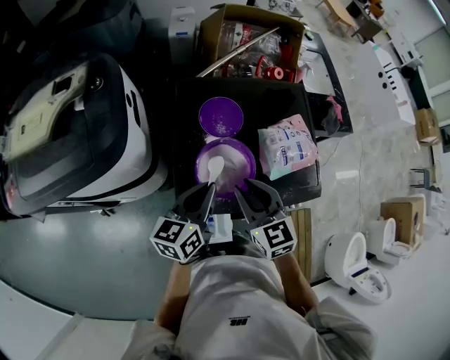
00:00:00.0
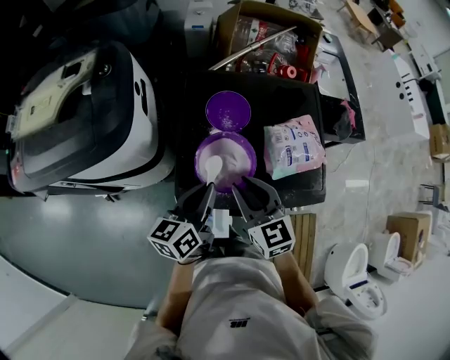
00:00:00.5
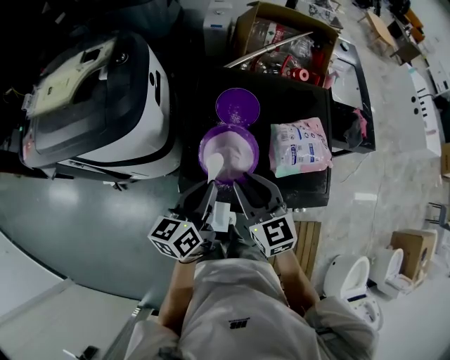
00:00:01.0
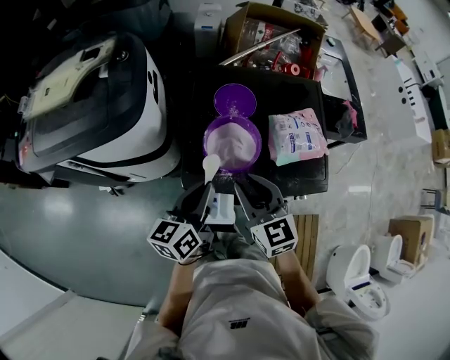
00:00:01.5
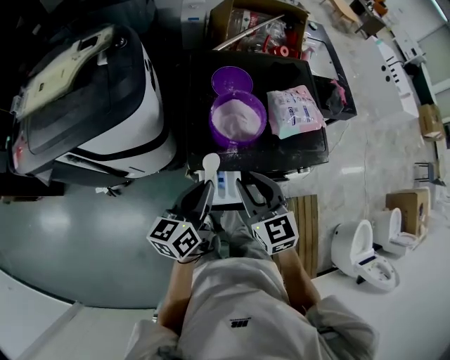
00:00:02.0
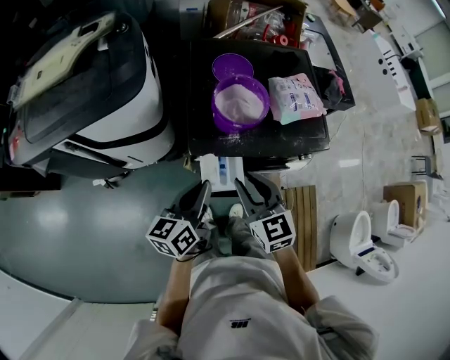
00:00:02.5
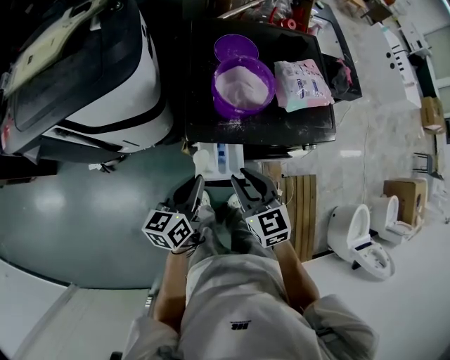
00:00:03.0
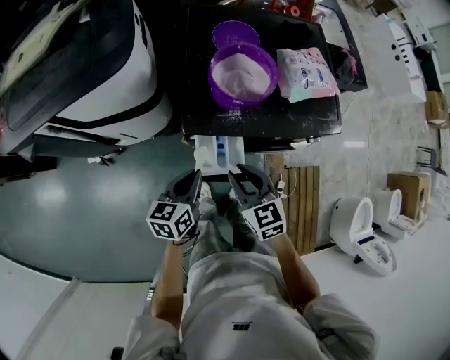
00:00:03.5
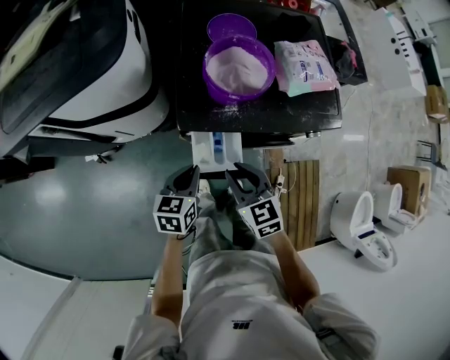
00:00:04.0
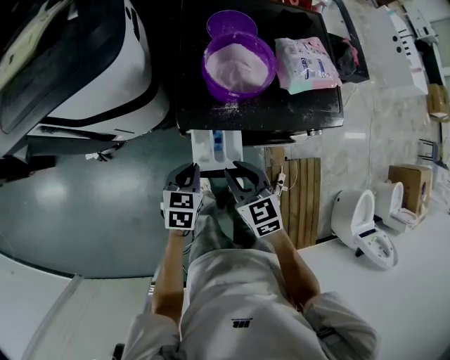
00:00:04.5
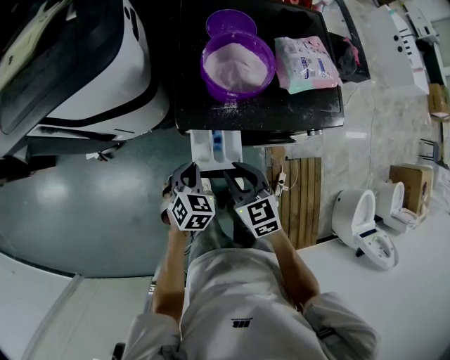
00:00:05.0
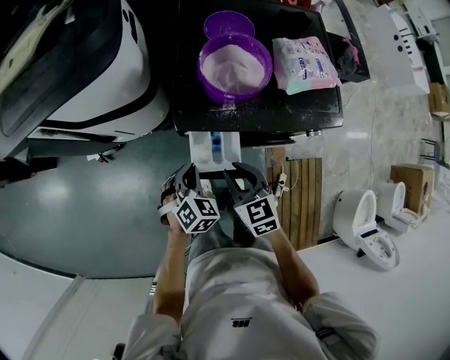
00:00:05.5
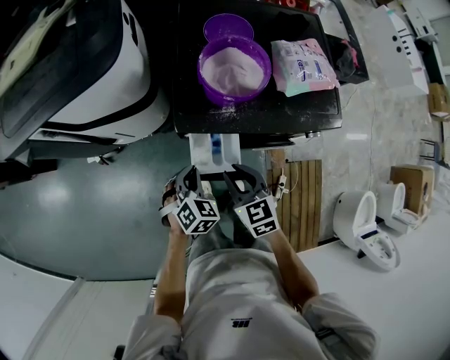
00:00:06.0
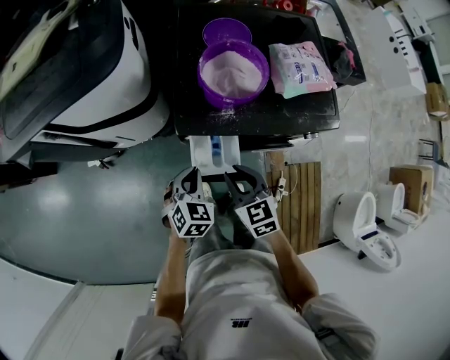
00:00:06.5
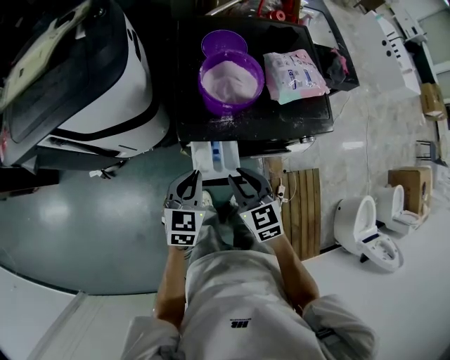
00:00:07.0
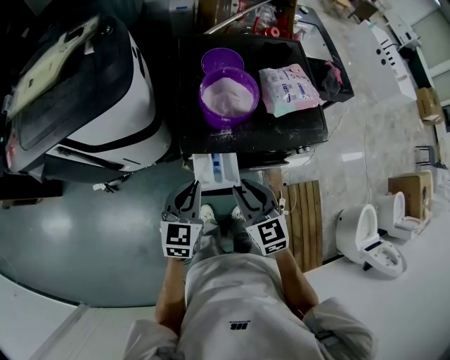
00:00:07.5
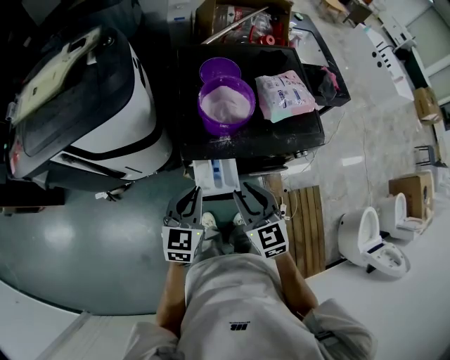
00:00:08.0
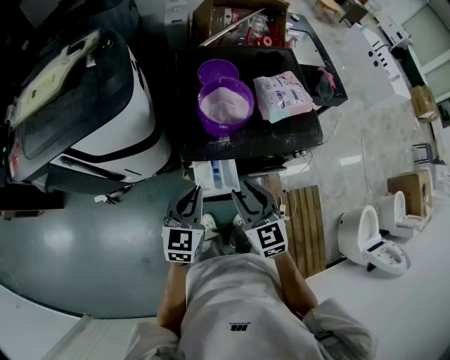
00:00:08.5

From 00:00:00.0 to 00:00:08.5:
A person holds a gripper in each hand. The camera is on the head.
From 00:00:00.0 to 00:00:02.0: The grippers both shift backward by roughly 15 cm.
From 00:00:02.0 to 00:00:04.0: The right gripper goes roughly 15 cm downward and backward. Meanwhile the left gripper is displaced downward by roughly 20 cm, and rotates about 30 degrees.
From 00:00:04.0 to 00:00:06.5: The left gripper rotates approximately 40 degrees.
From 00:00:06.5 to 00:00:08.5: The two grippers go roughly 10 cm upward. The left gripper turns by some 30 degrees.

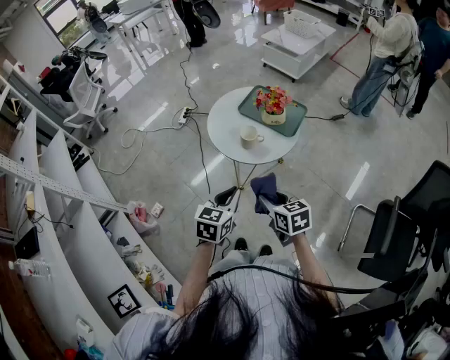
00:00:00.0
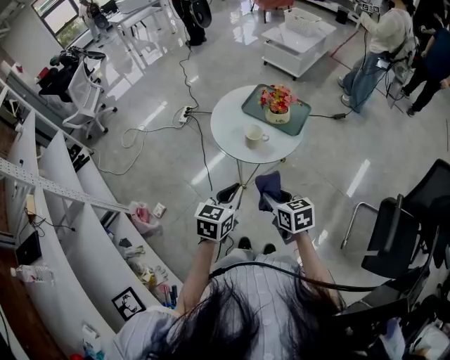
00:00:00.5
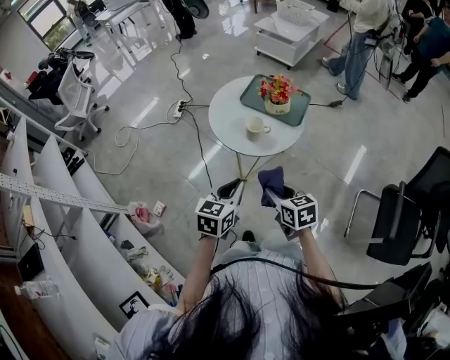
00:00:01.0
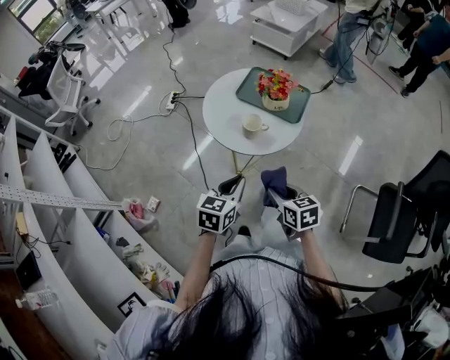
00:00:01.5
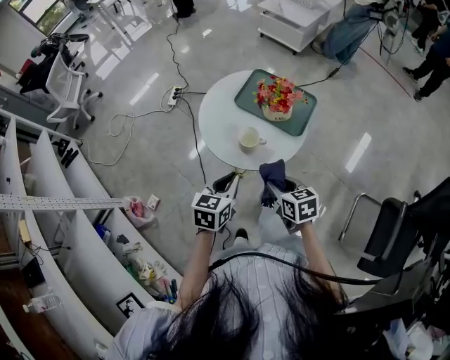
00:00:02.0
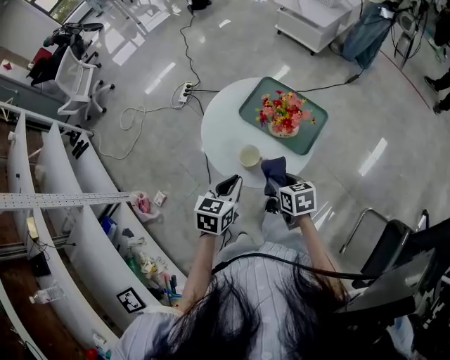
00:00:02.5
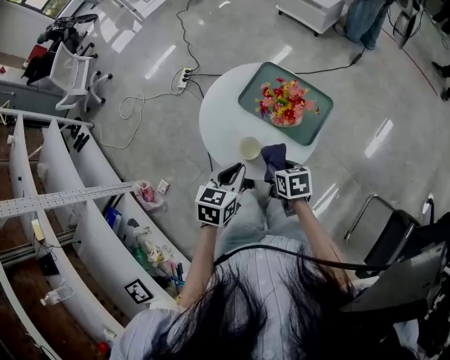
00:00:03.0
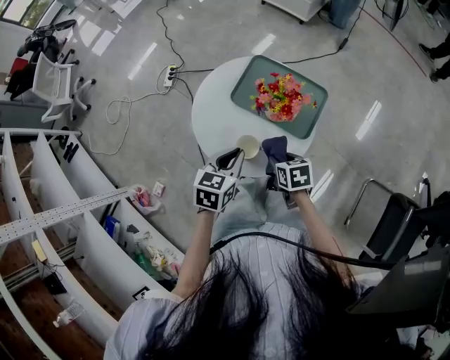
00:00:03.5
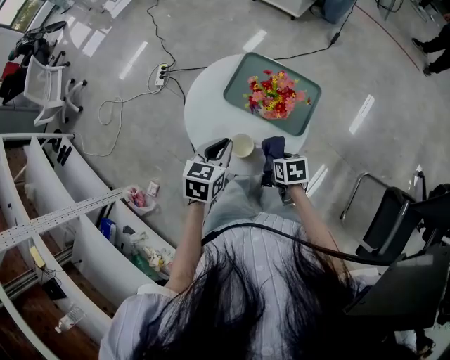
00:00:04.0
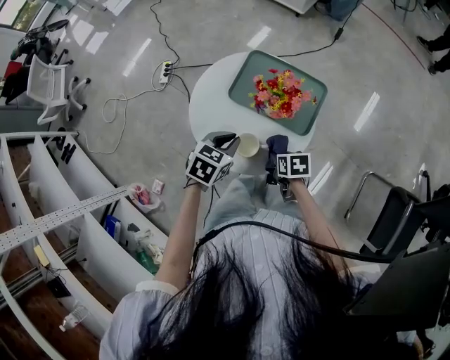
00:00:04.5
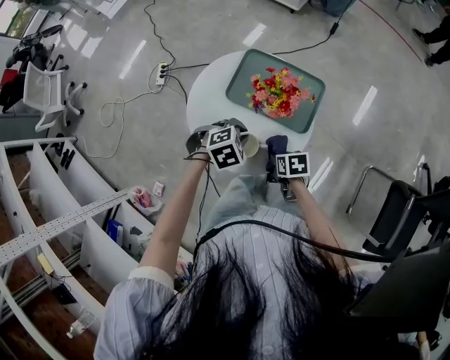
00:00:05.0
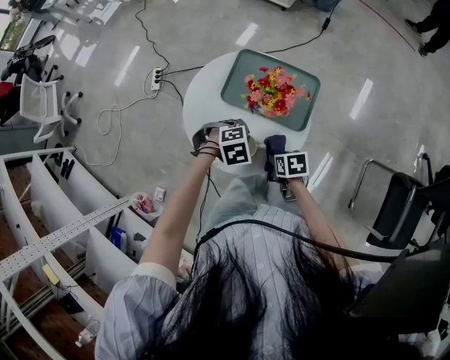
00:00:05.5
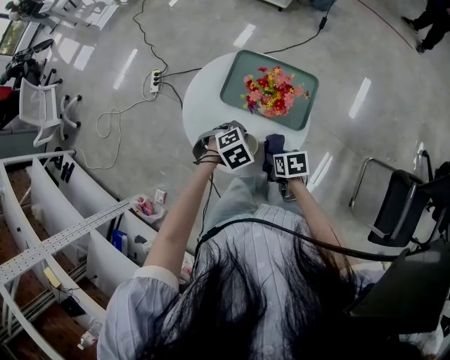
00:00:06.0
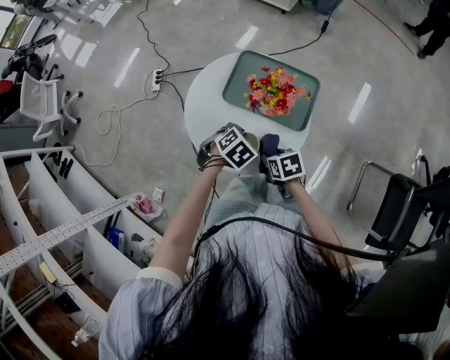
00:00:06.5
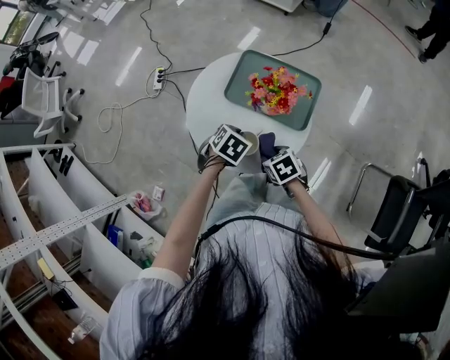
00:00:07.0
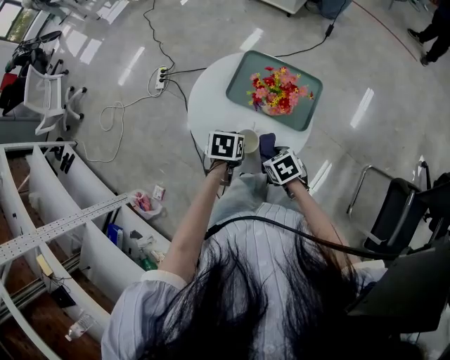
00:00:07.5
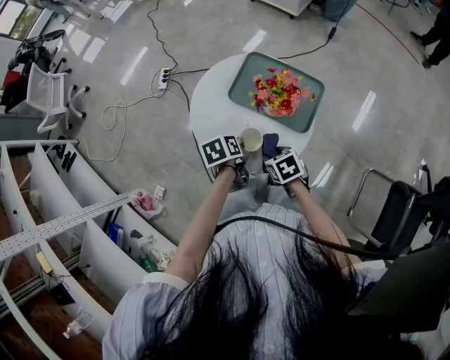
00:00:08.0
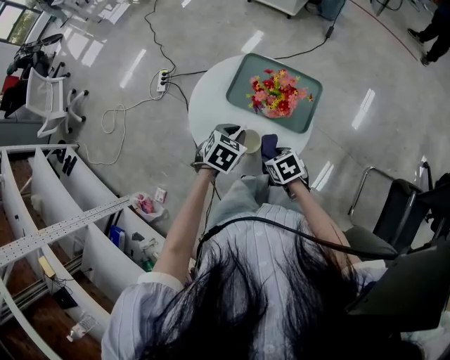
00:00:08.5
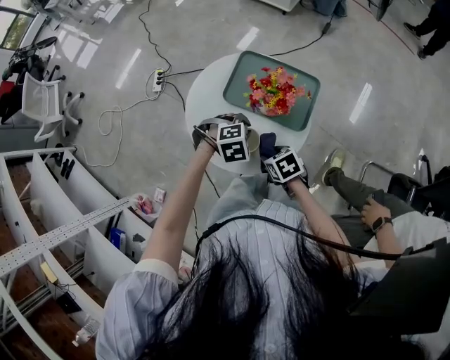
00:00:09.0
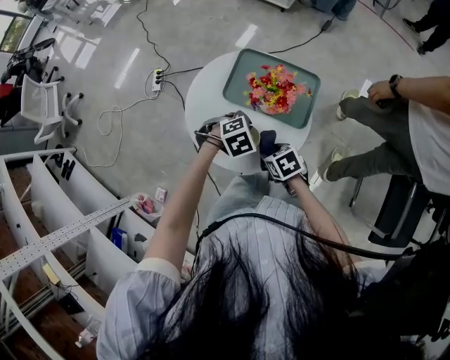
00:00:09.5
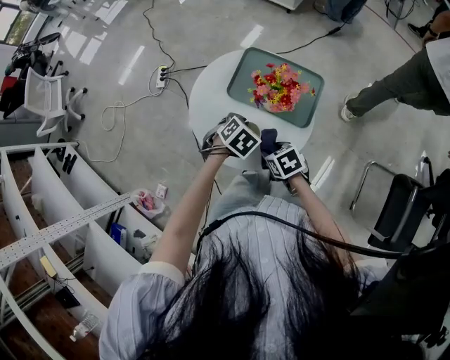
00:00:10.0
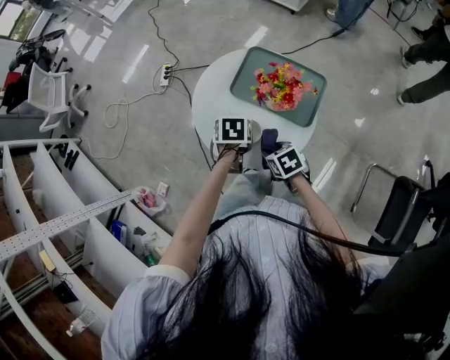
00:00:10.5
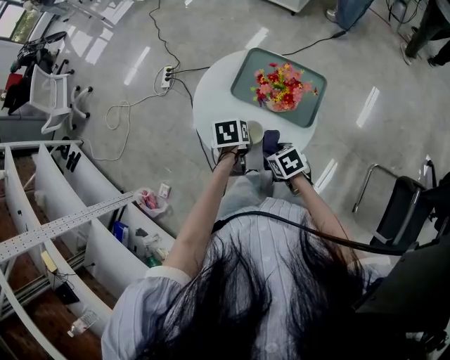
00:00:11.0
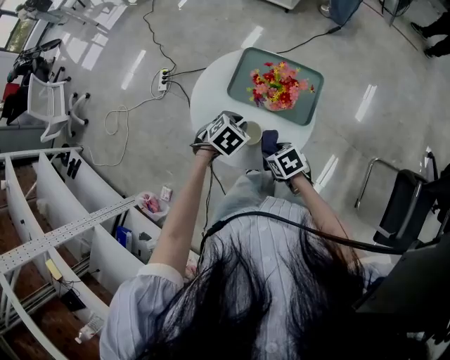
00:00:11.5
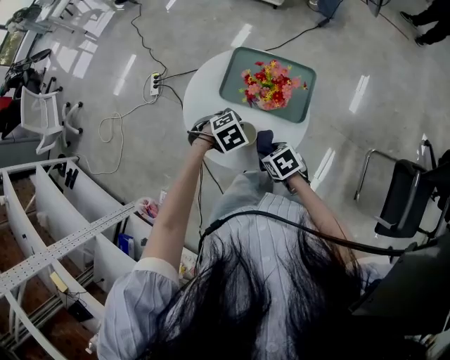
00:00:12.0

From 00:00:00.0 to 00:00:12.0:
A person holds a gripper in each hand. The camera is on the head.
From 00:00:00.0 to 00:00:02.0: Both grippers move forward and downward, approximately 15 cm.
From 00:00:02.0 to 00:00:04.0: The left gripper heads forward, covering about 15 cm. The right gripper is displaced forward, downward and to the right by approximately 15 cm, and changes its angle by approximately 20 degrees.
From 00:00:04.0 to 00:00:06.0: The left gripper travels downward by some 10 cm, and tilts its fingers roughly 30 degrees downward.
From 00:00:06.0 to 00:00:08.0: The left gripper moves to the left, some 5 cm, and rotates around the line of its fingers by roughly 90 degrees, counterclockwise from behind; the right gripper rotates some 30 degrees.
From 00:00:08.0 to 00:00:10.0: The left gripper moves about 5 cm, and rolls clockwise, seen from behind, by about 70 degrees.
From 00:00:10.0 to 00:00:12.0: The left gripper swivels roughly 30 degrees.

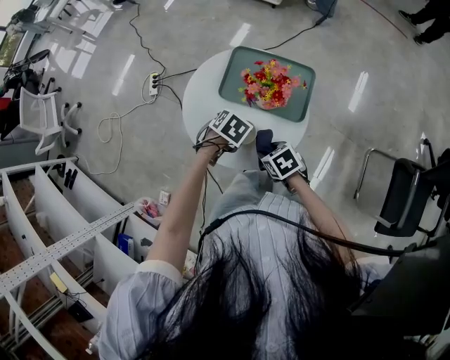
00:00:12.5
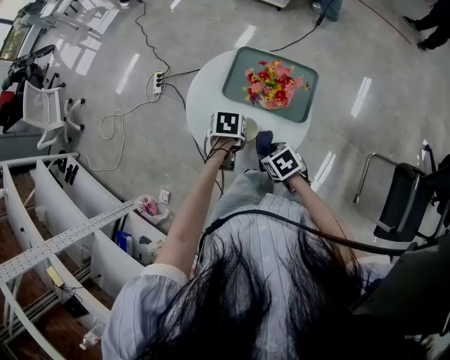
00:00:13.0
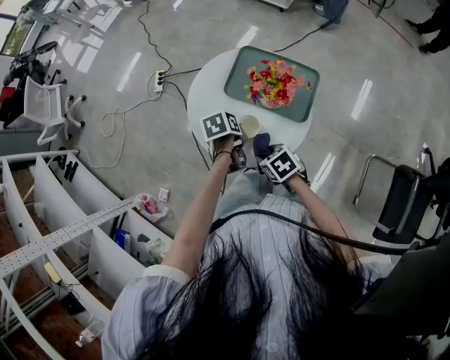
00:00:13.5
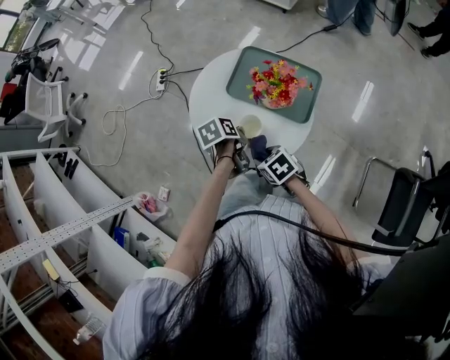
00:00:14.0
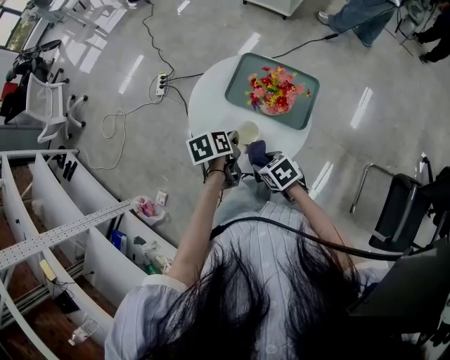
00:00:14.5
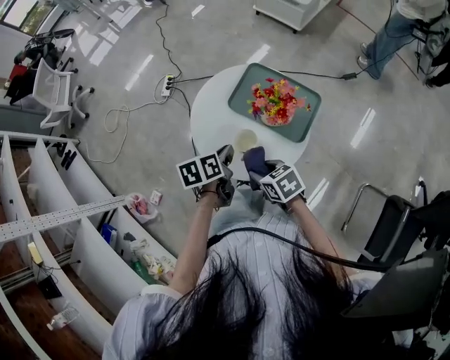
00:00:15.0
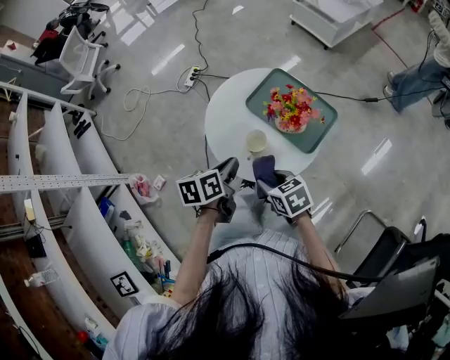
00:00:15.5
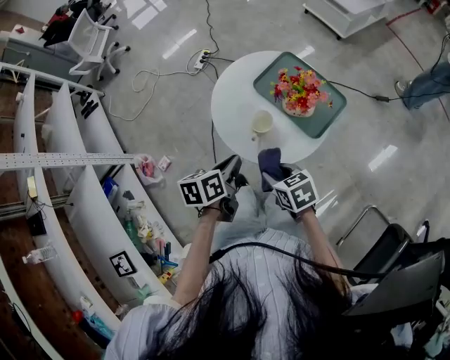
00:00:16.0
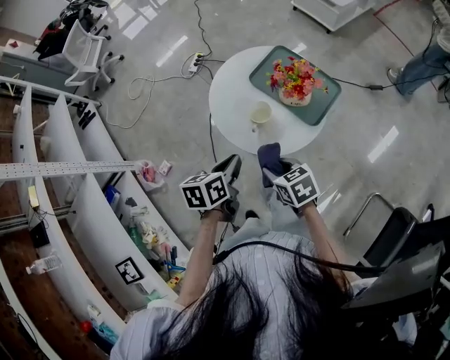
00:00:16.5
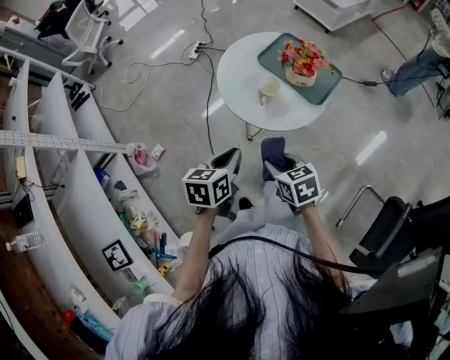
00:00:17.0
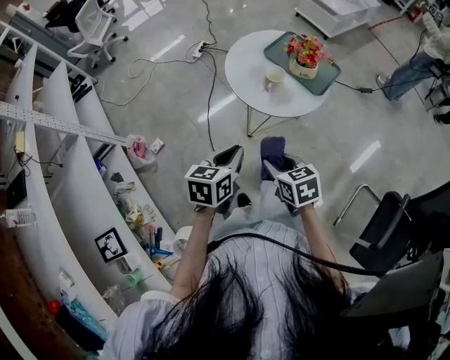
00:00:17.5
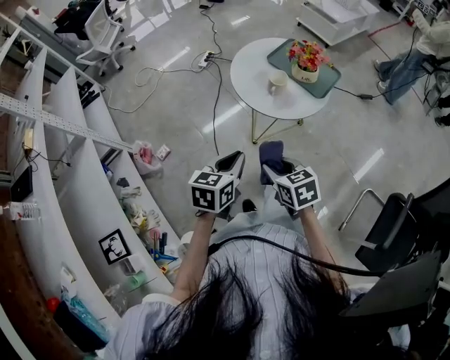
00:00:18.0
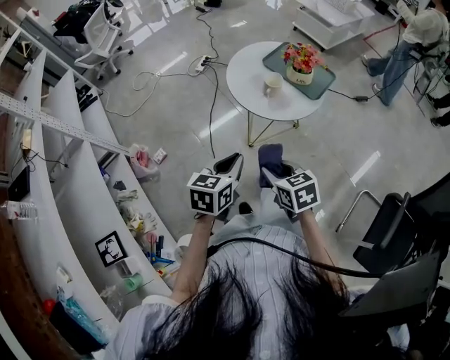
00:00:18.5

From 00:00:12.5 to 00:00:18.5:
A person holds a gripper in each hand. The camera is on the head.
From 00:00:12.5 to 00:00:14.5: The left gripper travels upward by approximately 5 cm, and rolls counterclockwise, seen from behind, by roughly 60 degrees.
From 00:00:14.5 to 00:00:16.5: The right gripper travels backward and upward by roughly 10 cm; the left gripper travels backward and upward by some 15 cm.
From 00:00:16.5 to 00:00:18.5: Both grippers move backward and to the left, approximately 20 cm. The left gripper rotates some 20 degrees.
